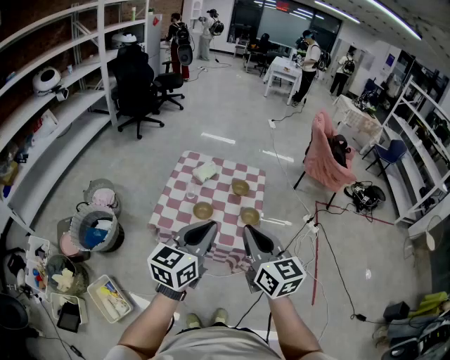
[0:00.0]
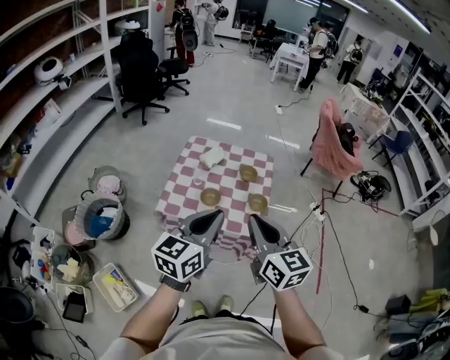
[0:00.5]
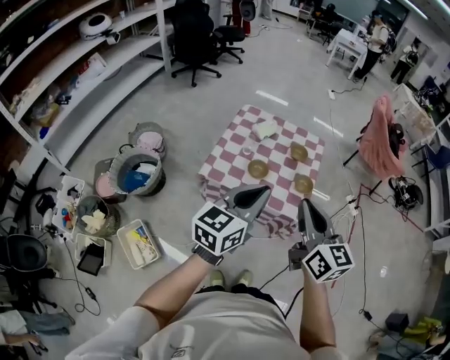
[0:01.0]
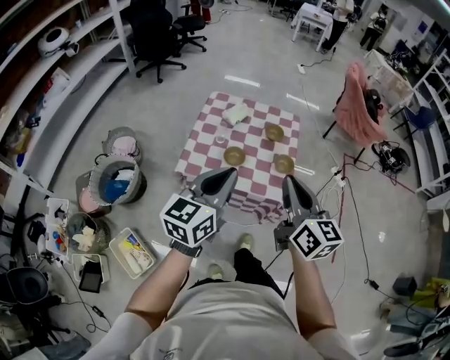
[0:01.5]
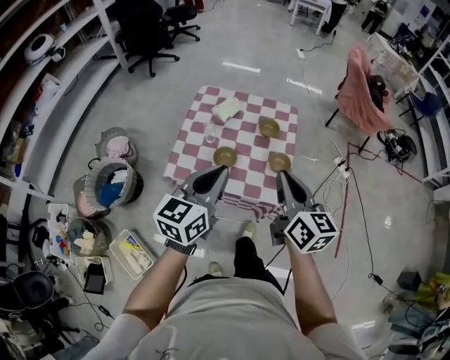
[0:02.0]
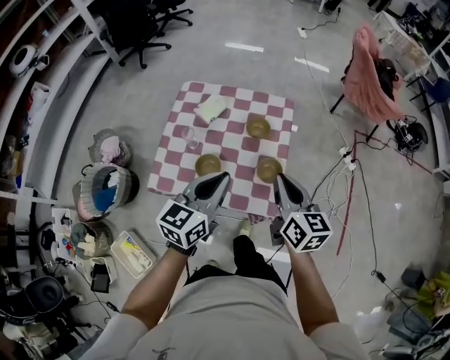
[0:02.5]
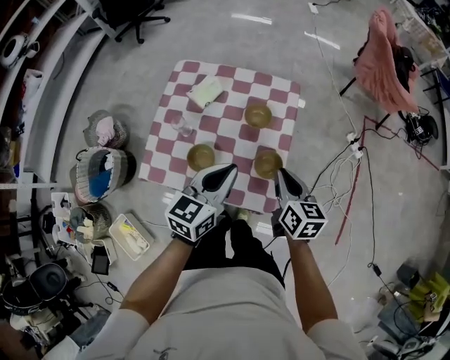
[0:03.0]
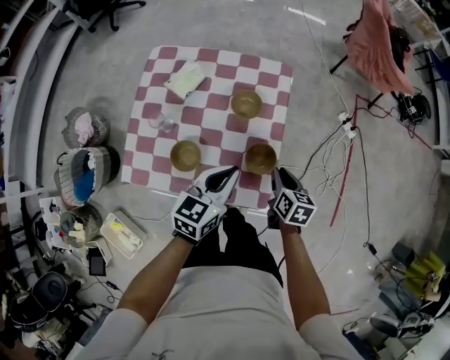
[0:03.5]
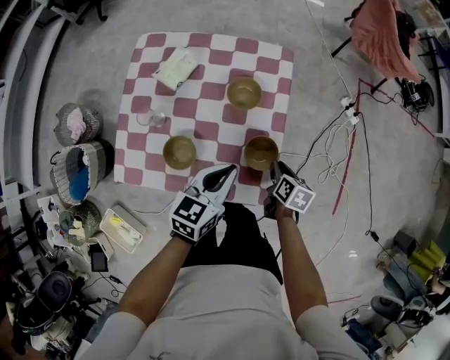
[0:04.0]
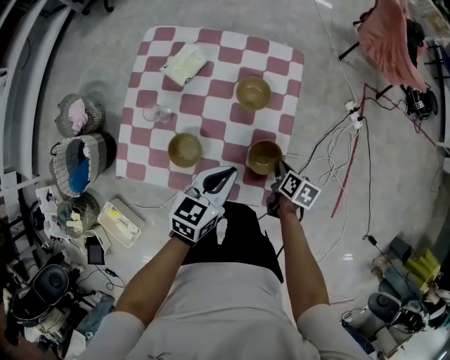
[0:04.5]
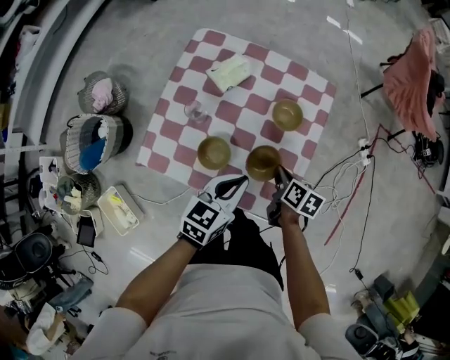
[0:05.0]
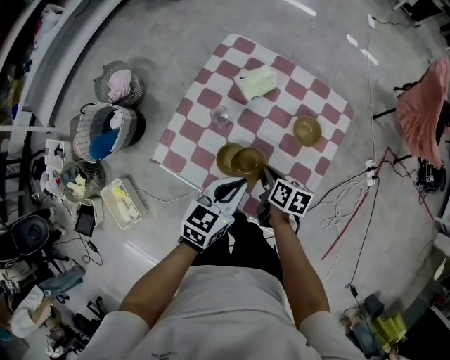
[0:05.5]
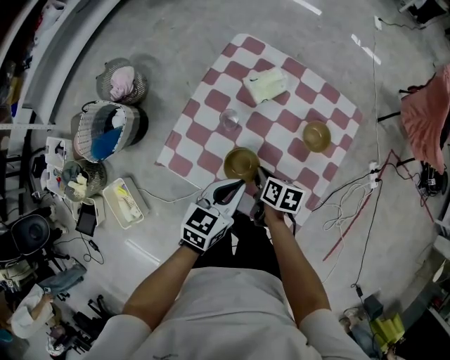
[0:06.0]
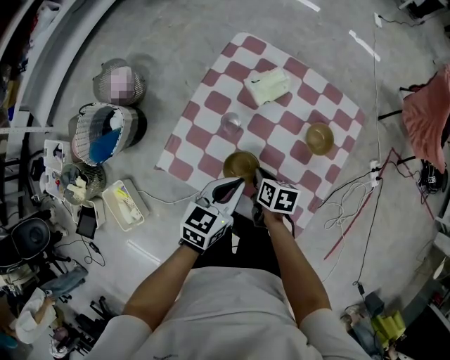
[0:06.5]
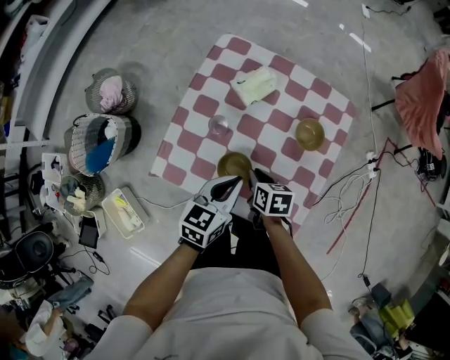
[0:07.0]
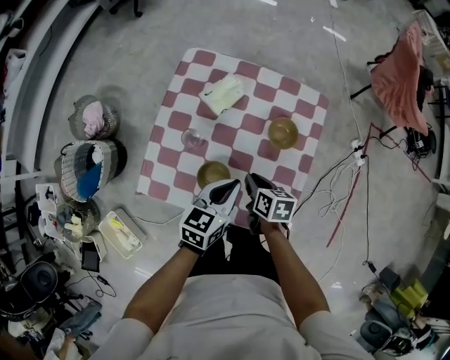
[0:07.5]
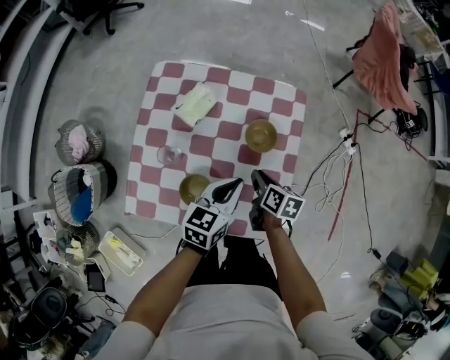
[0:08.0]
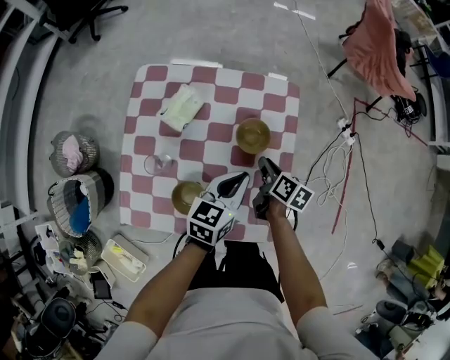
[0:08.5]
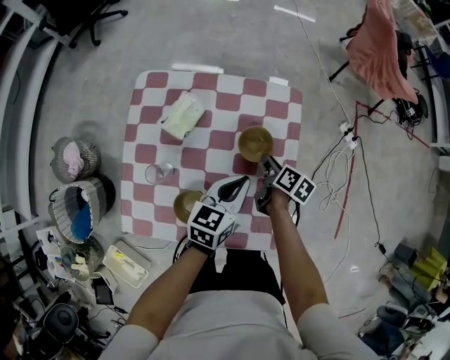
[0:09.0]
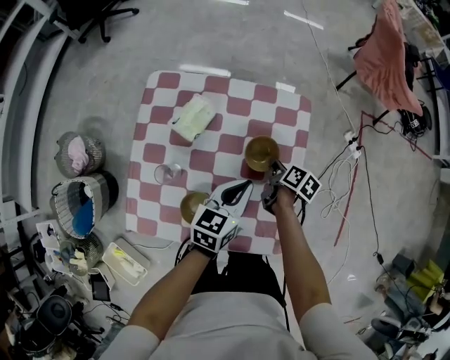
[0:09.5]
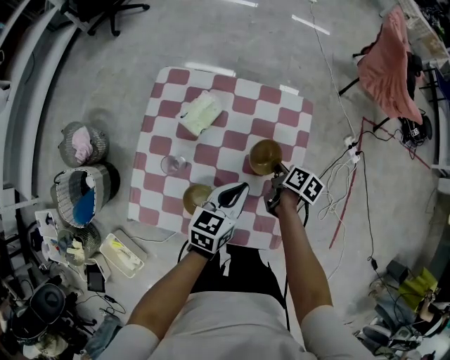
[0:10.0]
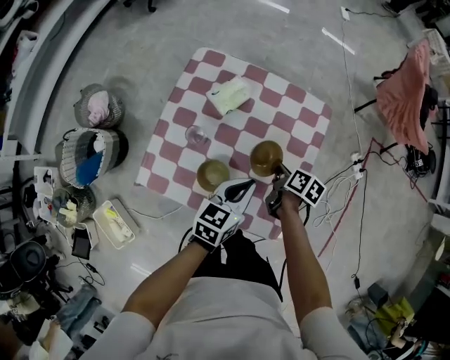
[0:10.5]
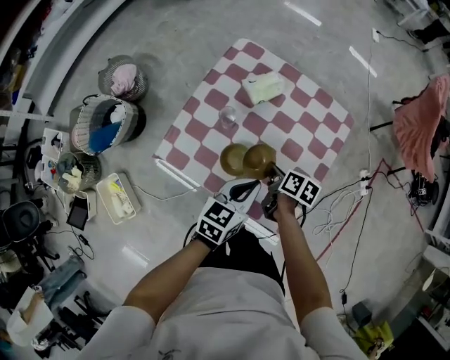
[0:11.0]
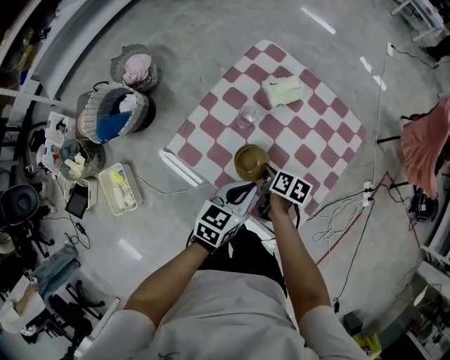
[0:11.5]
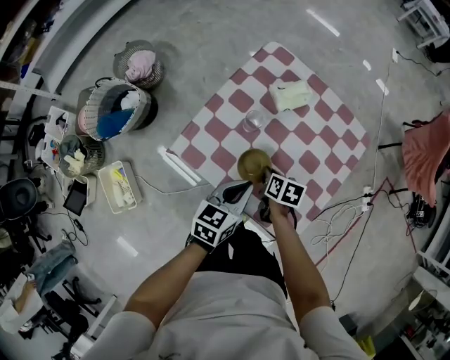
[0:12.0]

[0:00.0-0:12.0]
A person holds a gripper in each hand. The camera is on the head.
0:00.0 to 0:02.0: The grippers both shift forward and downward by some 15 cm.
0:02.0 to 0:04.0: The left gripper goes approximately 35 cm downward, forward and to the right, and rotates some 20 degrees; the right gripper heads downward and forward, covering roughly 50 cm, and points its fingers approximately 50 degrees further downward.
0:04.0 to 0:06.0: The right gripper ends up approximately 30 cm from where it was, and rotates roughly 30 degrees, while the left gripper shifts by some 15 cm.
0:06.0 to 0:08.0: The right gripper travels to the right by some 15 cm, and rotates about 20 degrees. Meanwhile the left gripper heads to the right and forward, covering roughly 15 cm.
0:08.0 to 0:10.0: The right gripper heads forward, covering roughly 10 cm.
0:10.0 to 0:12.0: The right gripper ends up roughly 25 cm from where it was, and rotates approximately 50 degrees; the left gripper changes place by about 20 cm, and swivels about 20 degrees.

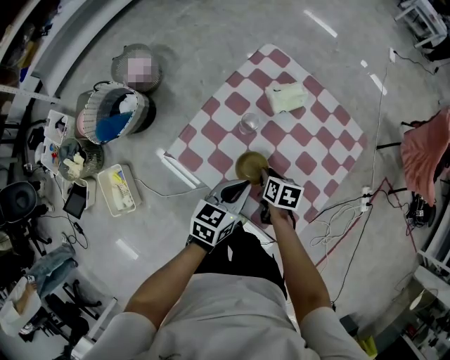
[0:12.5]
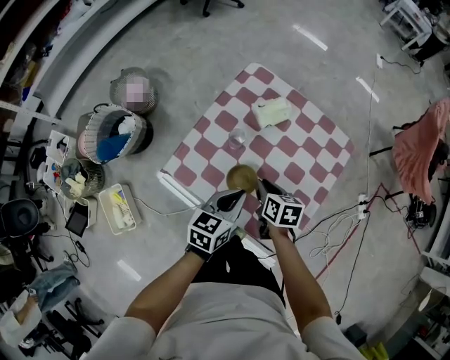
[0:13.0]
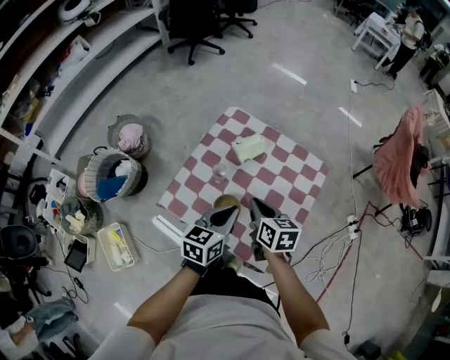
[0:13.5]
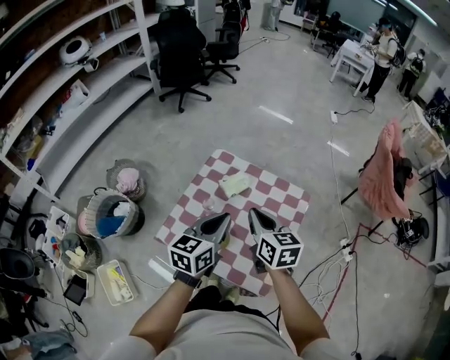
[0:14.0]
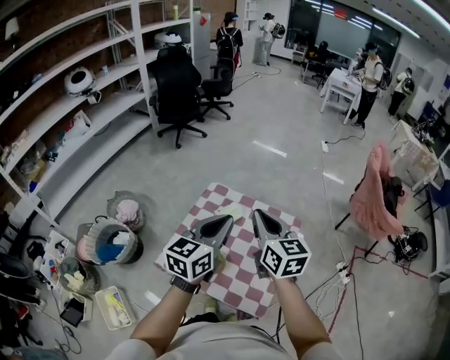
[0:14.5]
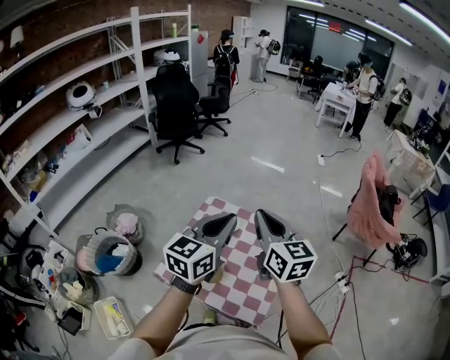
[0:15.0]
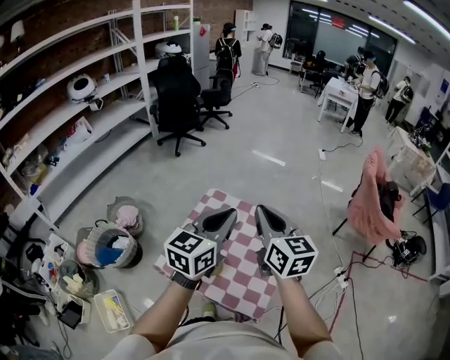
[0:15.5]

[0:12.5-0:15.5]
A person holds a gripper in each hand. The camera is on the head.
0:12.5 to 0:14.0: The grippers both shift upward by some 30 cm. The right gripper angles its fingers upward, by roughly 40 degrees.
0:14.0 to 0:15.5: Both grippers travel together upward, roughly 20 cm.

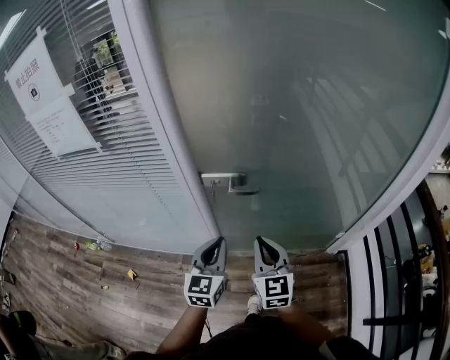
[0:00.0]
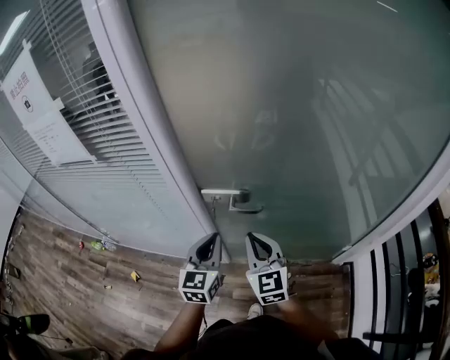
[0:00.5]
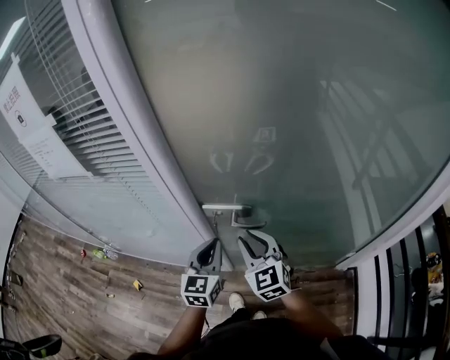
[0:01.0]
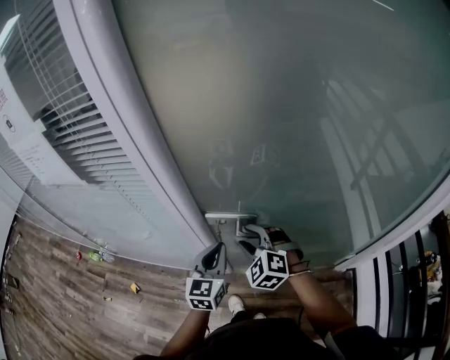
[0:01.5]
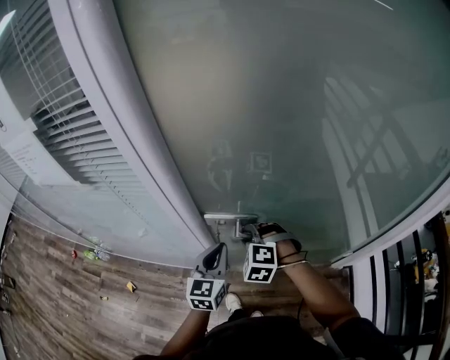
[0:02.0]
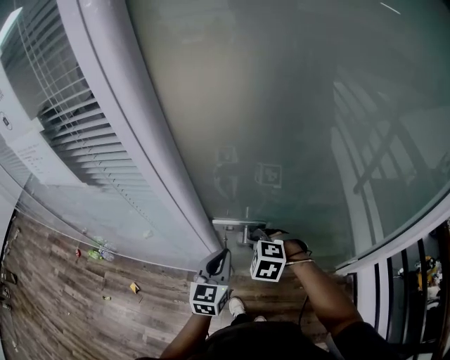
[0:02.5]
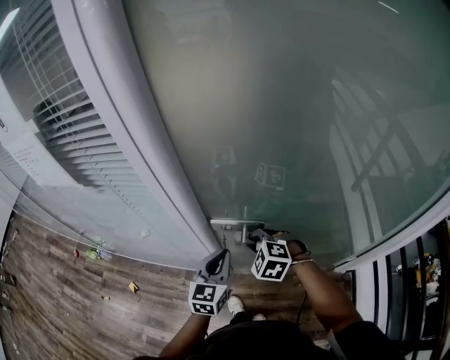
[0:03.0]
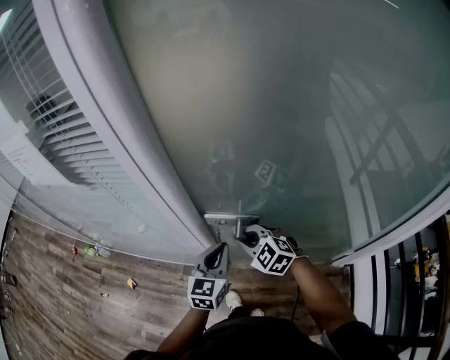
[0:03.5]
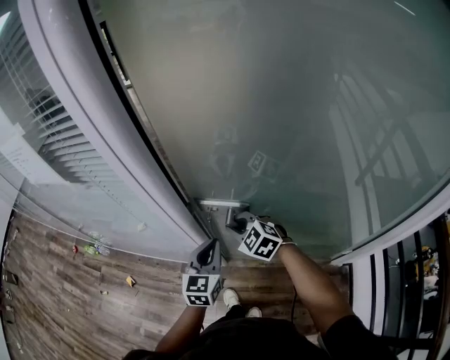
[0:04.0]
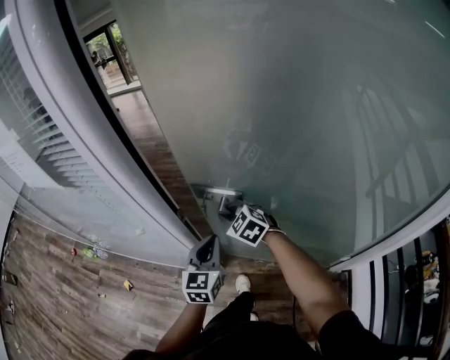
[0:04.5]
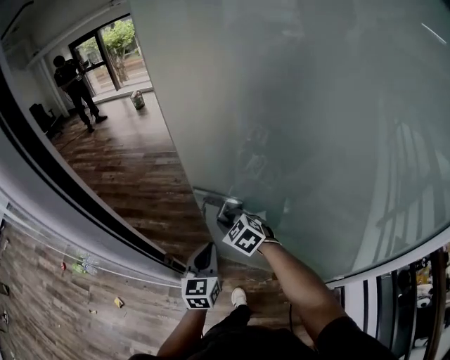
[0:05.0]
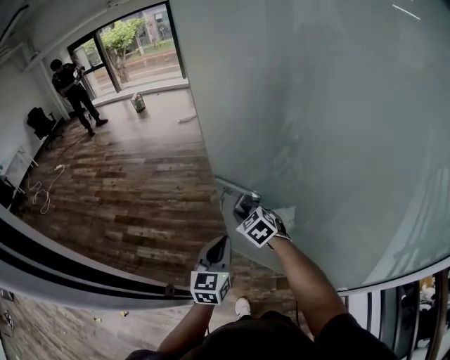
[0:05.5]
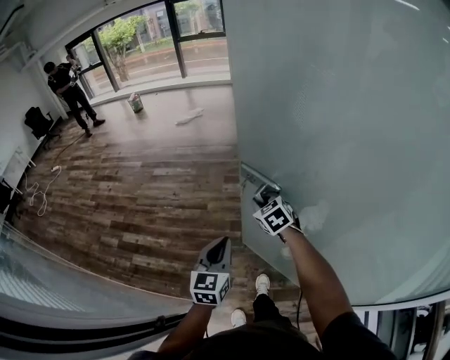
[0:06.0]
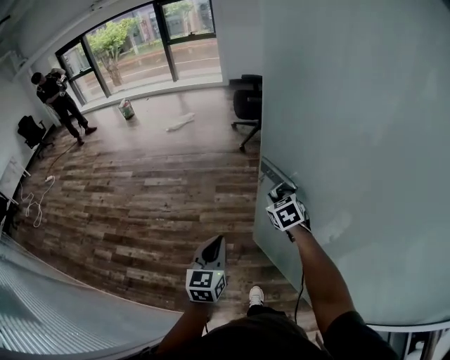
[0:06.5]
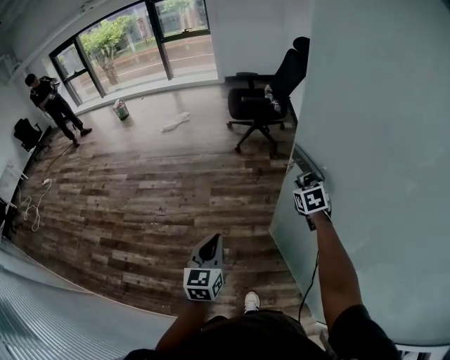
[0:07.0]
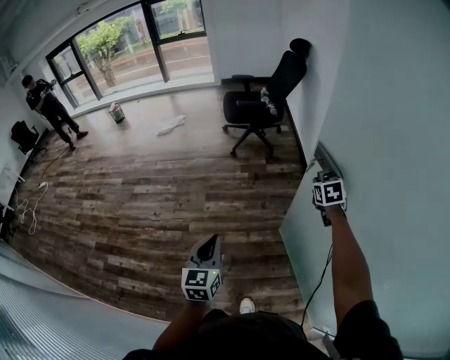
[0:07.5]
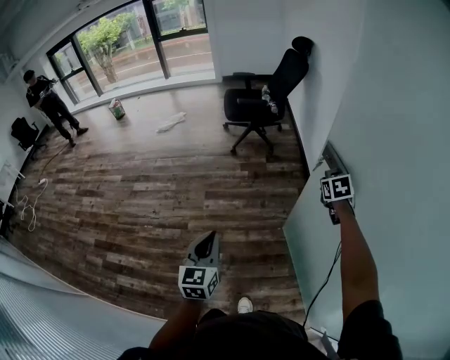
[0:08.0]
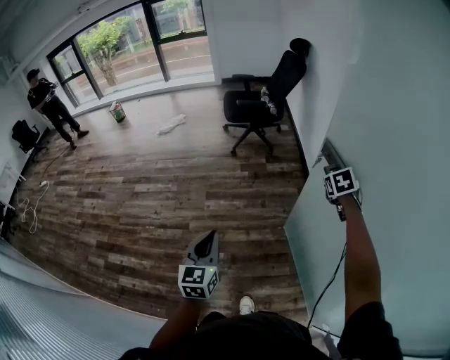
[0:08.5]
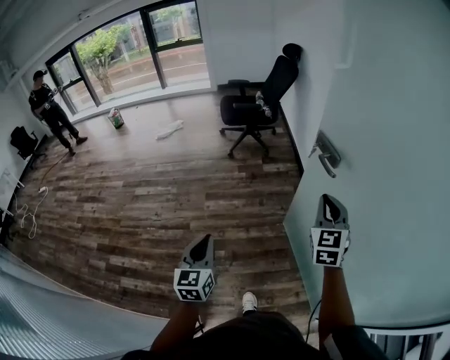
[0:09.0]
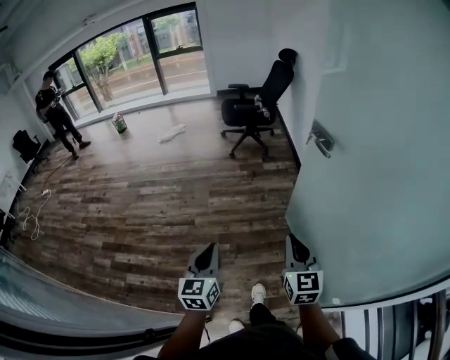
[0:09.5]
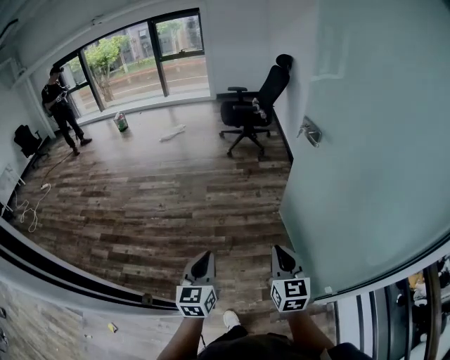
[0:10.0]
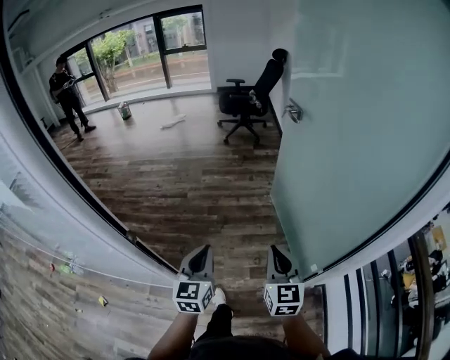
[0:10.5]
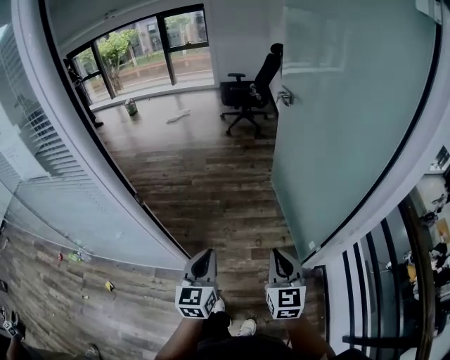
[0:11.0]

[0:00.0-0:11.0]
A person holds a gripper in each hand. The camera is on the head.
0:00.0 to 0:02.0: The left gripper shifts approximately 15 cm forward, while the right gripper moves forward and downward, about 20 cm, points its fingers about 40 degrees further downward, and opens its fingers.
0:02.0 to 0:03.5: The right gripper rotates approximately 30 degrees, and closes.
0:03.5 to 0:05.5: Both grippers travel together forward and to the right, about 35 cm. The right gripper swivels approximately 20 degrees.
0:05.5 to 0:07.5: Both grippers are carried forward and to the right, approximately 50 cm. The right gripper rotates about 40 degrees.
0:07.5 to 0:09.0: The left gripper travels backward by some 10 cm. The right gripper goes approximately 30 cm backward and upward, and tilts its fingers some 30 degrees upward.
0:09.0 to 0:11.0: Both grippers are carried backward, approximately 70 cm. The right gripper turns by some 20 degrees.
